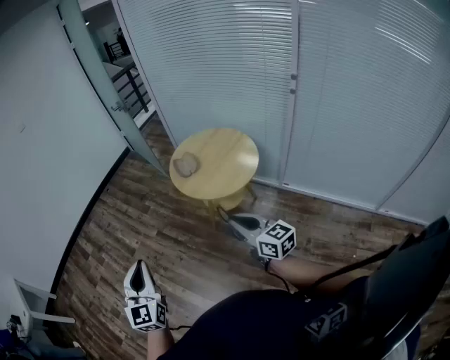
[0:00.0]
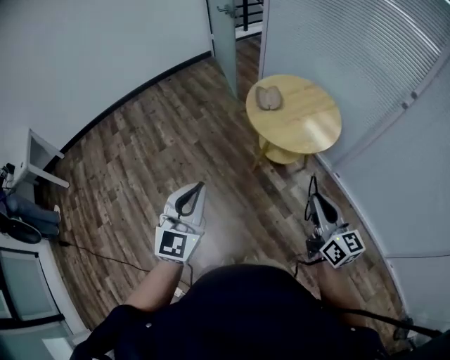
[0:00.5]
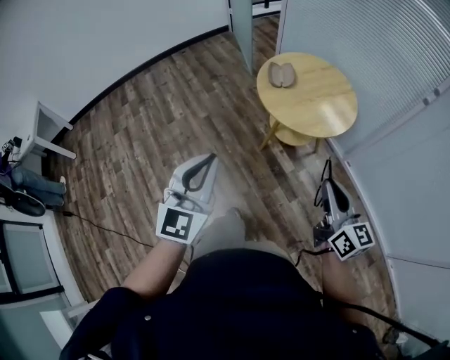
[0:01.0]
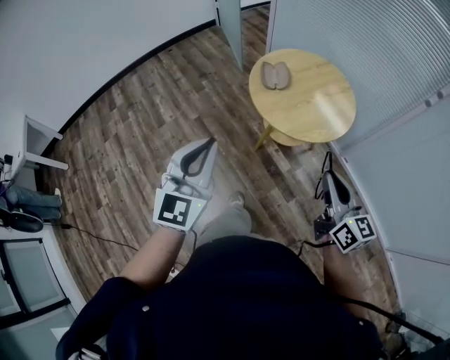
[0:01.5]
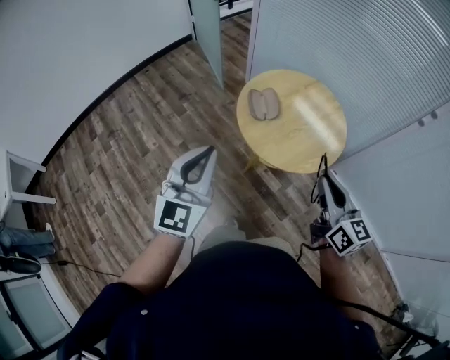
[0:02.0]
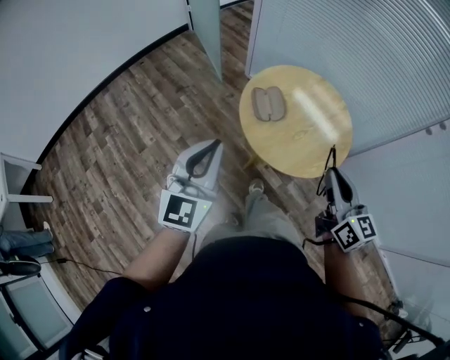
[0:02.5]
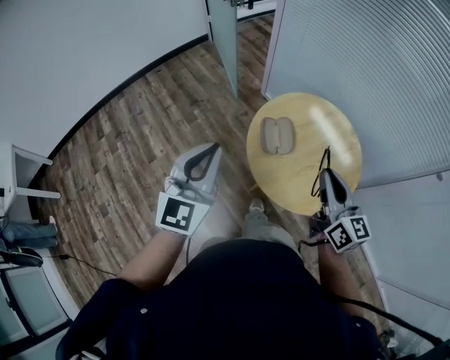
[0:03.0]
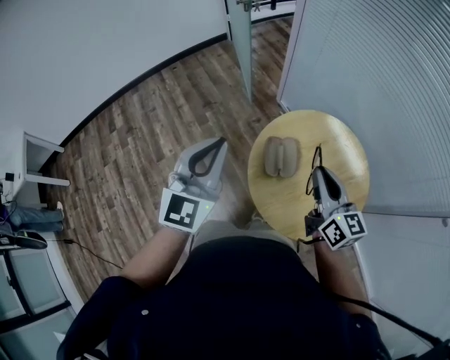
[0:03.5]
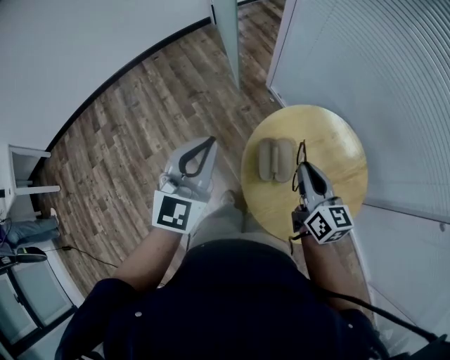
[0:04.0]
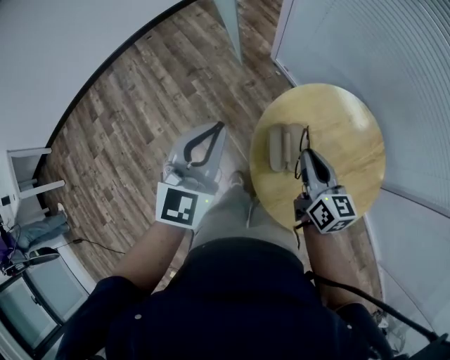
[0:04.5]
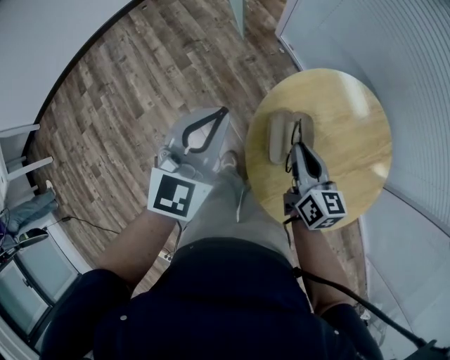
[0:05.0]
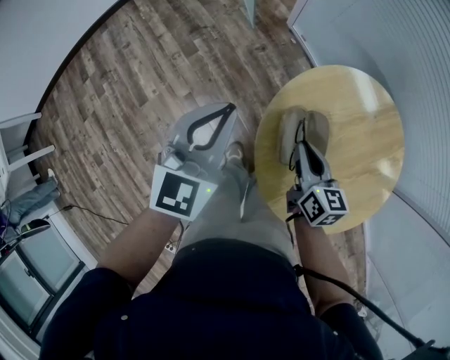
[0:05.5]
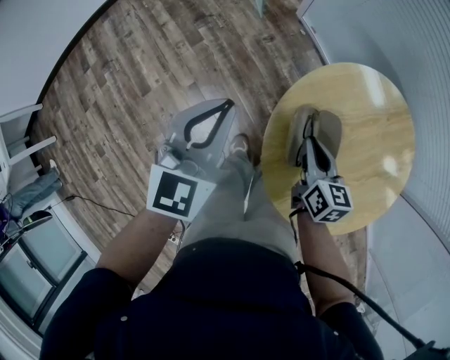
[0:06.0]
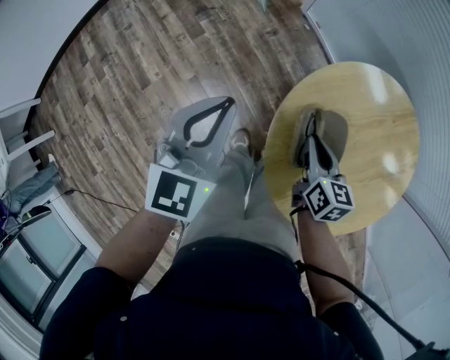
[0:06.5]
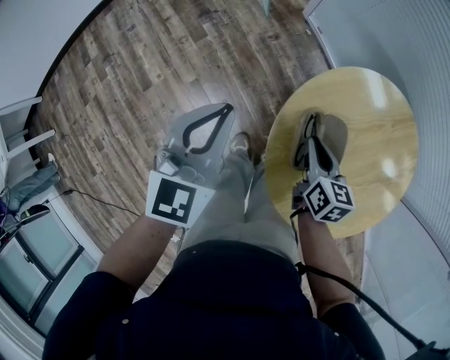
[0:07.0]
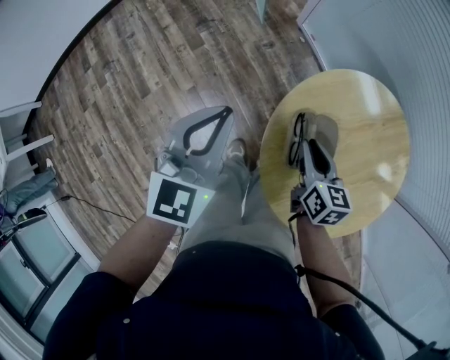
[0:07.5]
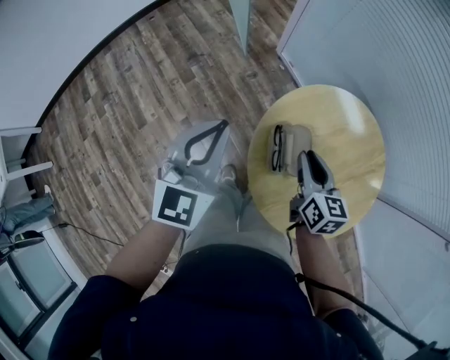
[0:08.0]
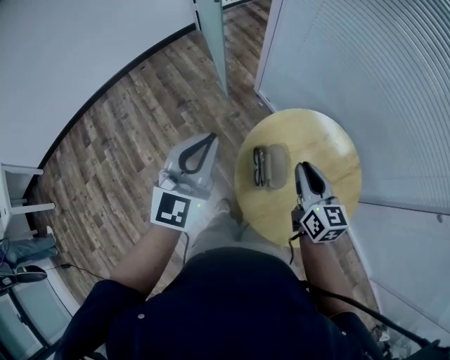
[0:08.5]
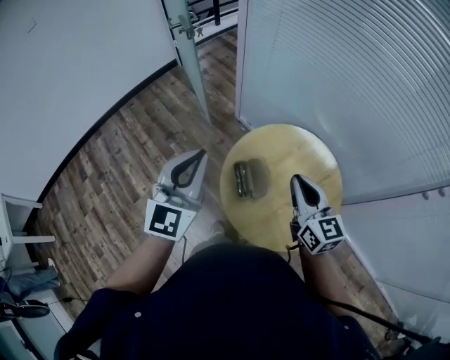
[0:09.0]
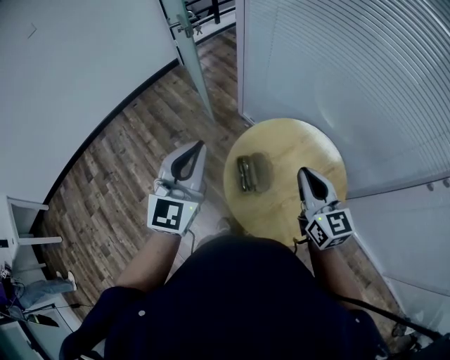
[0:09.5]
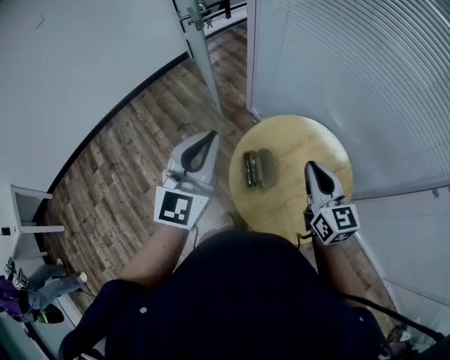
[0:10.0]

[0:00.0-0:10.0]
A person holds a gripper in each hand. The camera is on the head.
0:00.0 to 0:02.0: Both grippers move forward, approximately 30 cm.
0:02.0 to 0:04.0: Both grippers travel together forward, roughly 40 cm.
0:04.0 to 0:06.0: The left gripper heads downward and forward, covering some 20 cm. Meanwhile the right gripper heads downward, covering roughly 25 cm, and rotates about 20 degrees.
0:06.0 to 0:08.0: Both grippers move upward, roughly 10 cm.
0:08.0 to 0:10.0: The two grippers go some 20 cm upward and to the right. The right gripper swivels approximately 30 degrees.

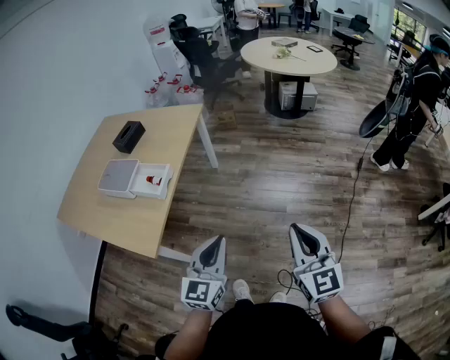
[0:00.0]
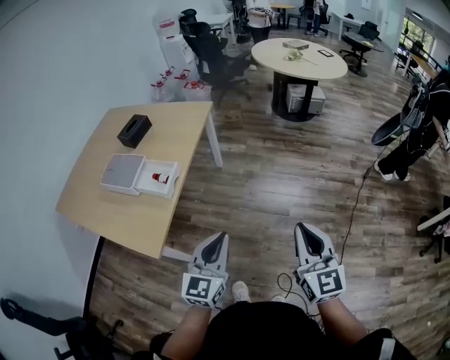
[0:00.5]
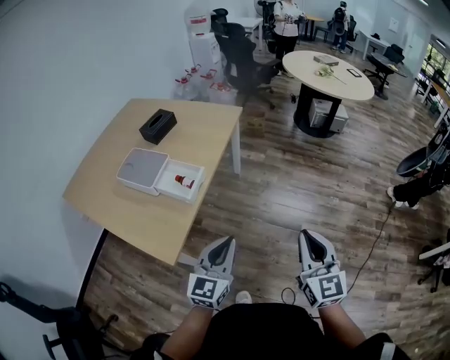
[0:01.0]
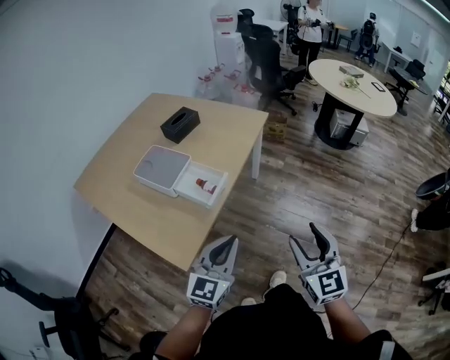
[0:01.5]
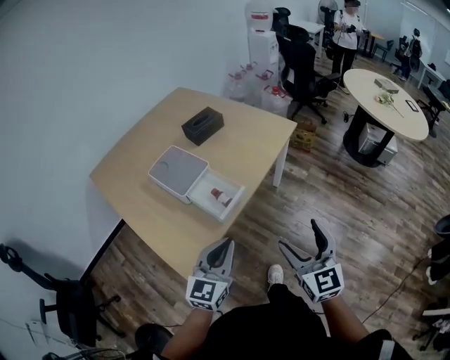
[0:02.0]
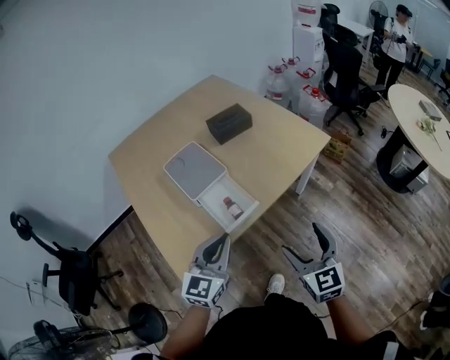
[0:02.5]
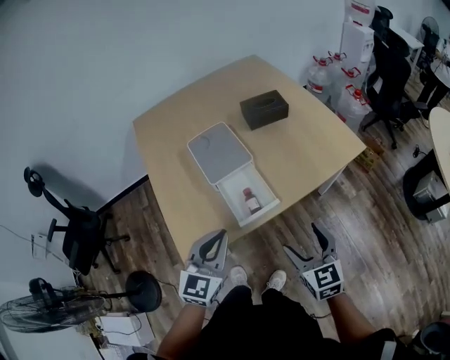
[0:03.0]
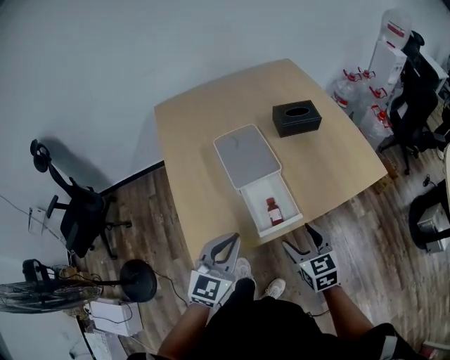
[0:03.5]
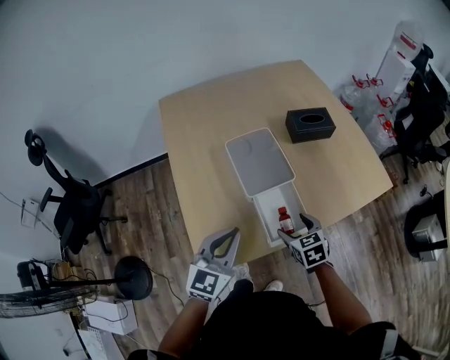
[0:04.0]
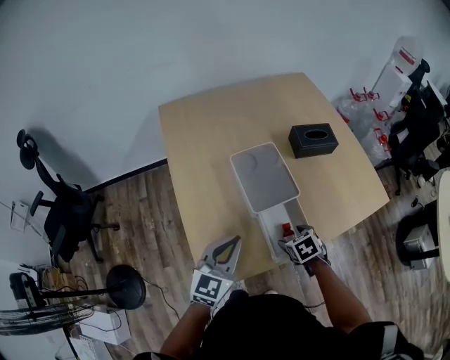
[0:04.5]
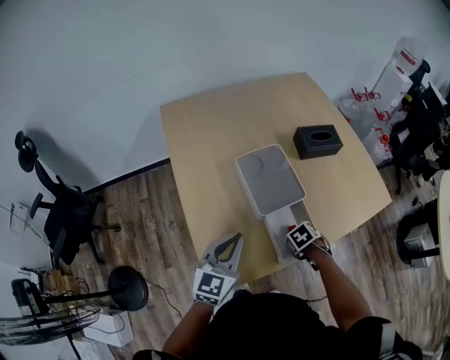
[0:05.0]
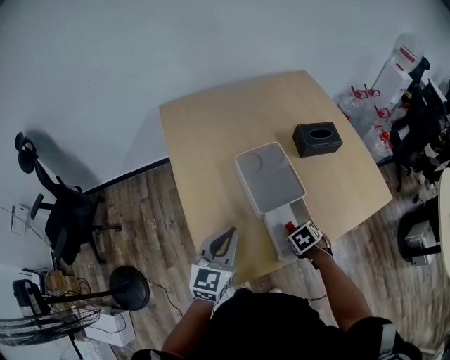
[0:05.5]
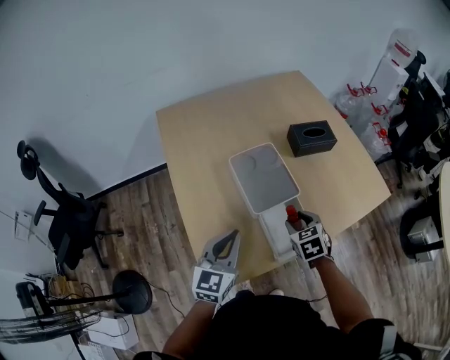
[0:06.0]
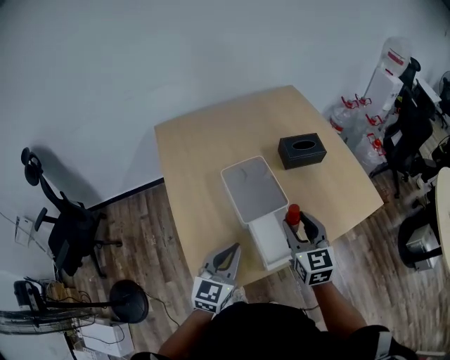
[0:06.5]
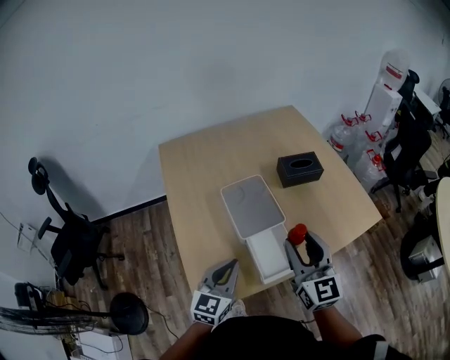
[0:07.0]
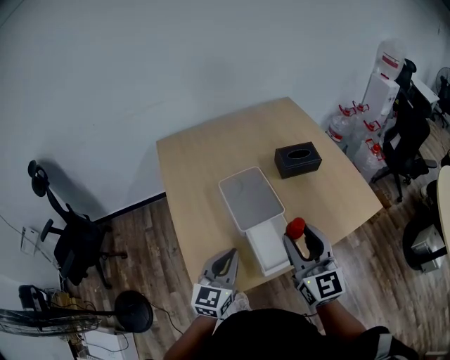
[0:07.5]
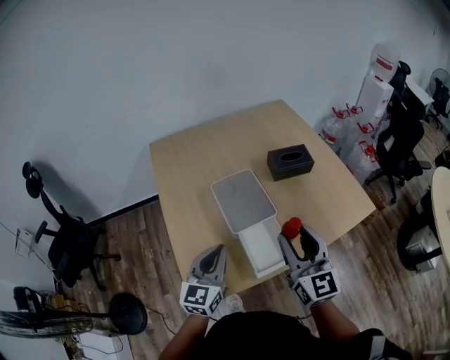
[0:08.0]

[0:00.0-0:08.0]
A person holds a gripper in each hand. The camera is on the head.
0:00.0 to 0:02.0: The left gripper travels to the left and forward by about 30 cm; the right gripper moves forward and to the left, approximately 35 cm, swivels approximately 30 degrees, and opens its fingers.
0:02.0 to 0:04.0: The left gripper moves about 20 cm, and changes its angle by roughly 30 degrees; the right gripper moves roughly 35 cm, and tips its fingers downward by some 40 degrees.
0:04.0 to 0:06.0: The left gripper ends up roughly 5 cm from where it was. Meanwhile the right gripper moves some 10 cm downward and comes back, and closes.
0:06.0 to 0:08.0: The left gripper moves some 5 cm. Meanwhile the right gripper shifts about 25 cm upward, and angles its fingers upward, by about 50 degrees.

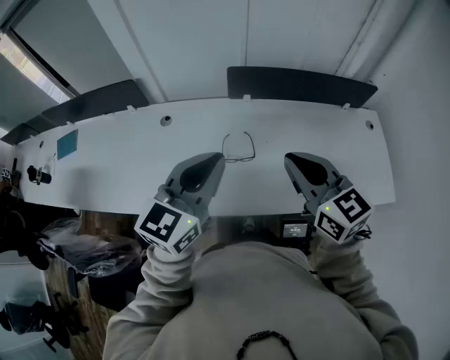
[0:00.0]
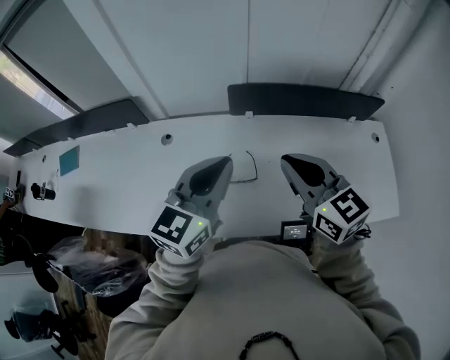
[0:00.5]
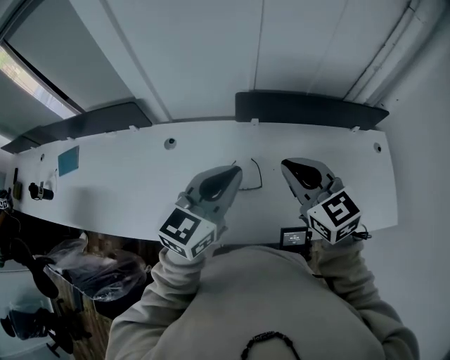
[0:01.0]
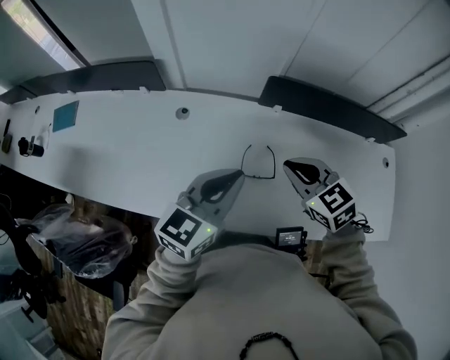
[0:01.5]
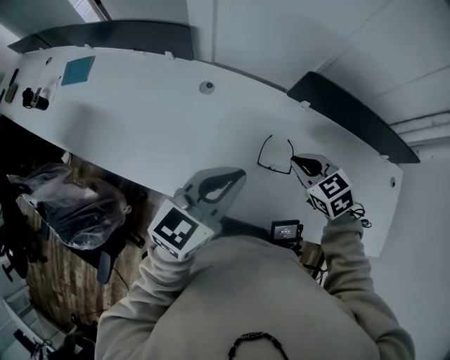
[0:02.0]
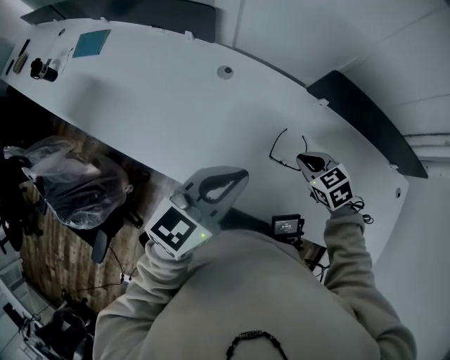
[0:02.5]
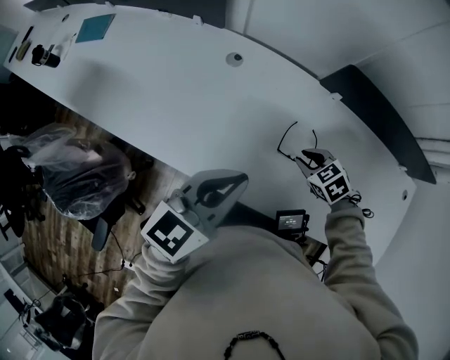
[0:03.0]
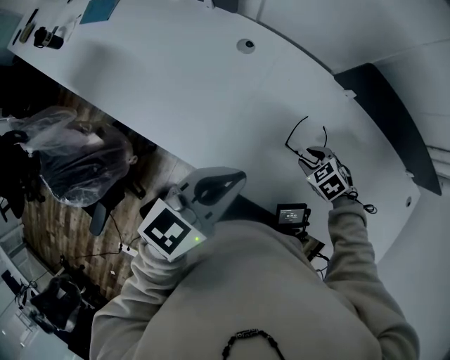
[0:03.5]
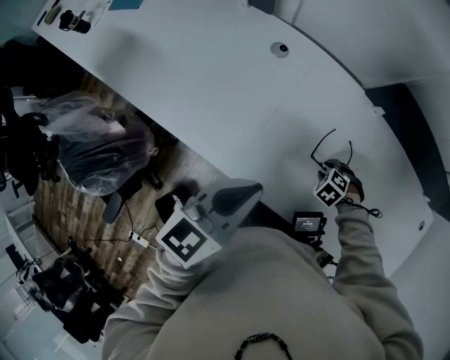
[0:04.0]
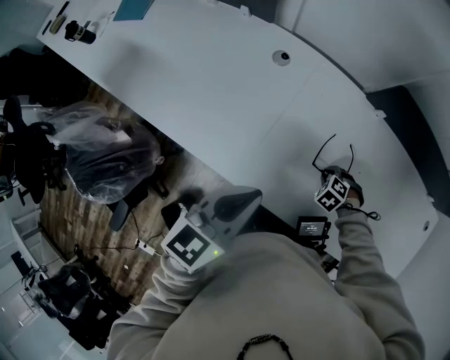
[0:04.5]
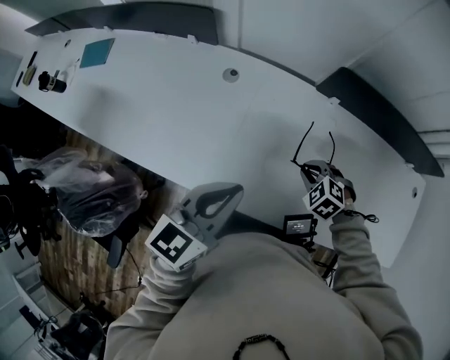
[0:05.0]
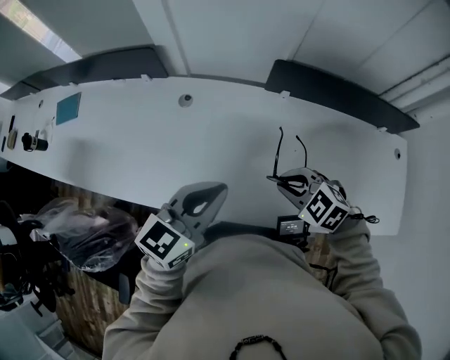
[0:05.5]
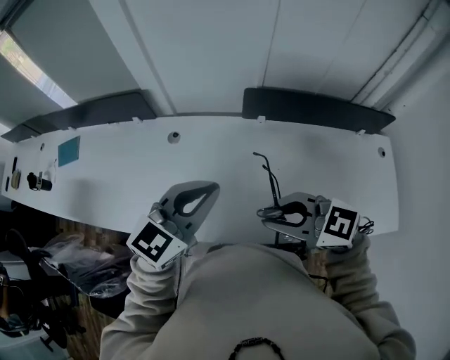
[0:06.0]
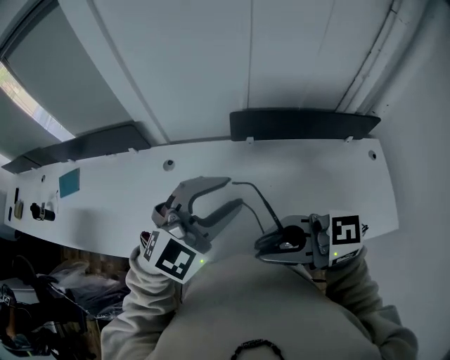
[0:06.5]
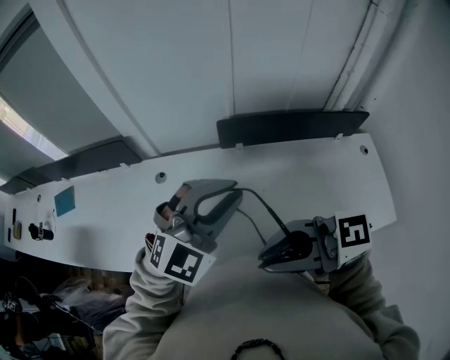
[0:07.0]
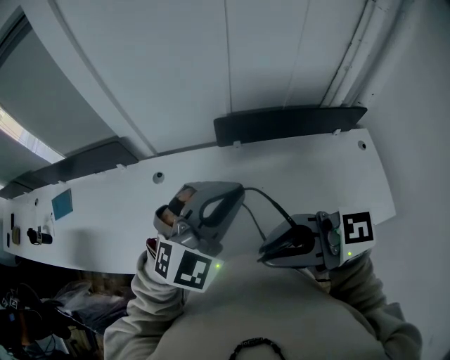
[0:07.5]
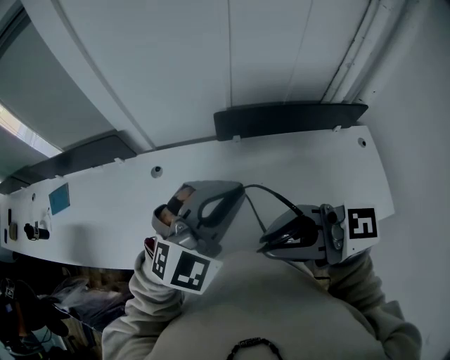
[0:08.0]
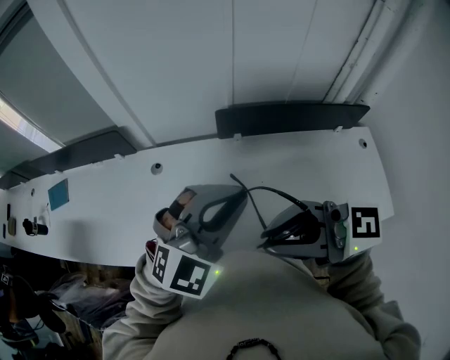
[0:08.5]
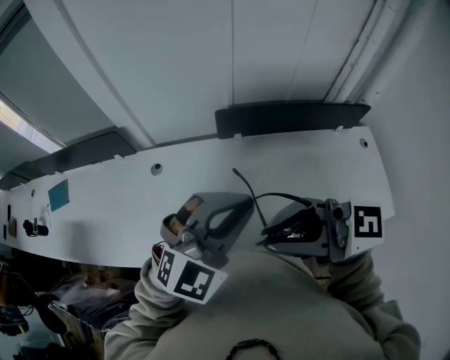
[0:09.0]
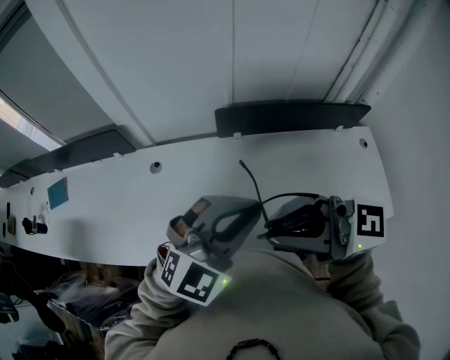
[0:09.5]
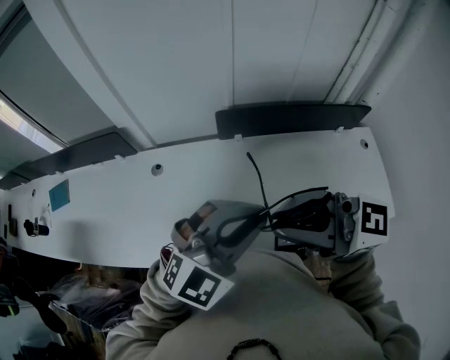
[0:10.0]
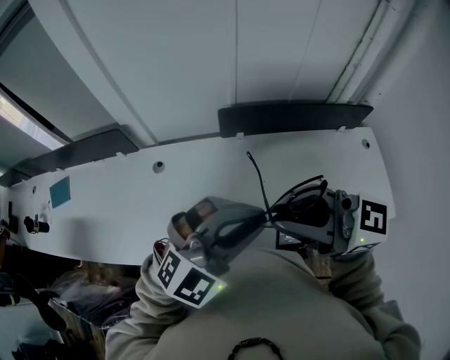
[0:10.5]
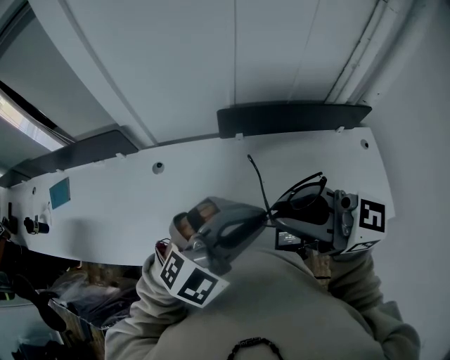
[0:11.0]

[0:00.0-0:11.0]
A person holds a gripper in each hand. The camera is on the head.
0:00.0 to 0:02.0: The right gripper moves downward, forward and to the left, some 25 cm, and tilts its fingers some 40 degrees downward; the left gripper shifts about 15 cm to the left, downward and forward.
0:02.0 to 0:03.5: The left gripper shifts approximately 5 cm downward; the right gripper is displaced downward by roughly 20 cm, turns by roughly 30 degrees, and opens.
0:03.5 to 0:05.5: The right gripper goes some 15 cm upward, and rotates approximately 20 degrees, while the left gripper shifts by some 5 cm.
0:05.5 to 0:07.5: The right gripper goes approximately 30 cm upward, and angles its fingers upward, by approximately 60 degrees. Meanwhile the left gripper travels upward by about 15 cm, rolls clockwise, seen from behind, by some 60 degrees, and opens, then closes once more.
0:07.5 to 0:09.0: The grippers make only small movements.
0:09.0 to 0:11.0: The grippers stay close to where they were, moving slightly.
